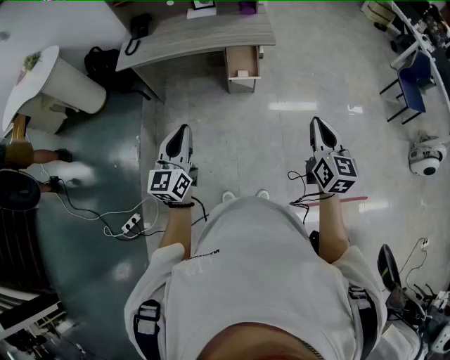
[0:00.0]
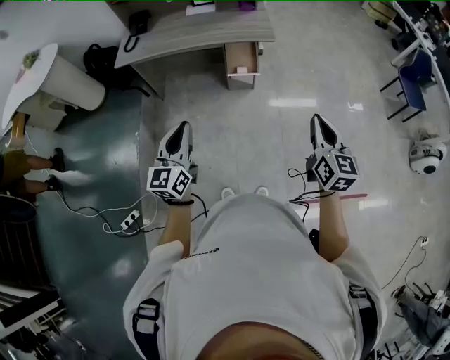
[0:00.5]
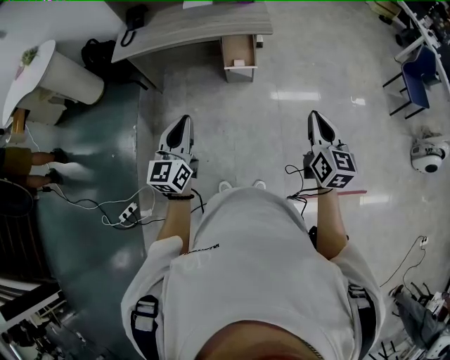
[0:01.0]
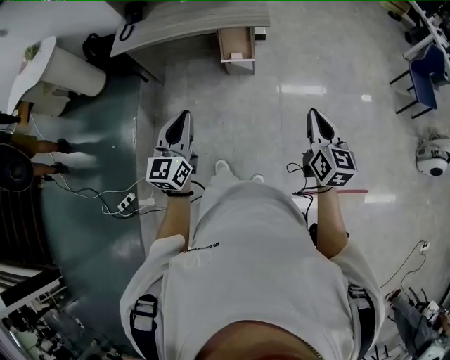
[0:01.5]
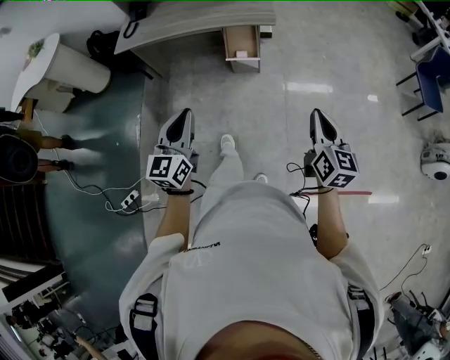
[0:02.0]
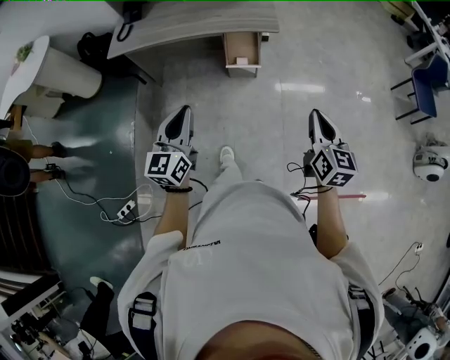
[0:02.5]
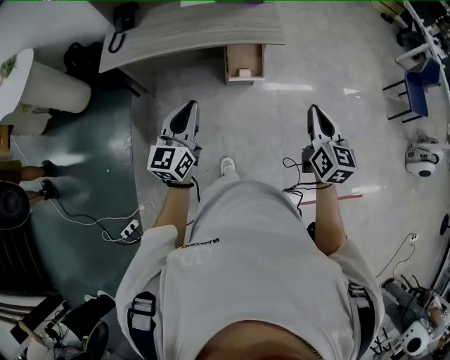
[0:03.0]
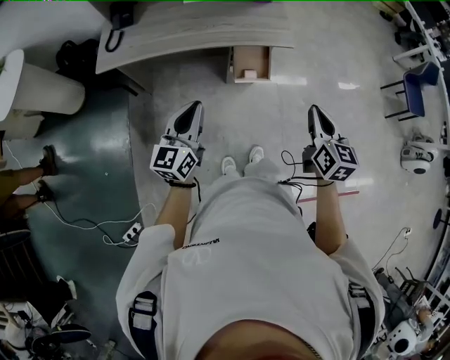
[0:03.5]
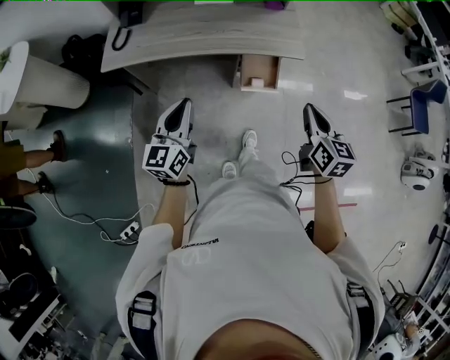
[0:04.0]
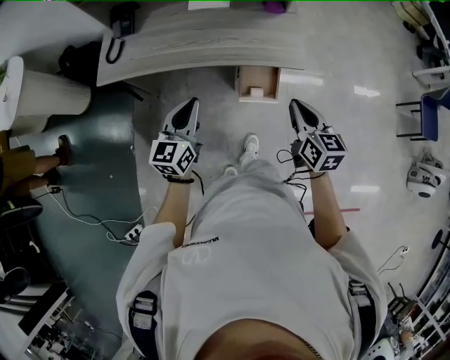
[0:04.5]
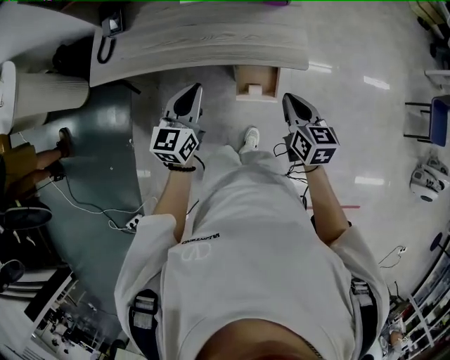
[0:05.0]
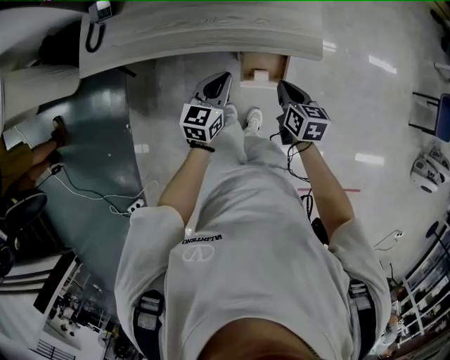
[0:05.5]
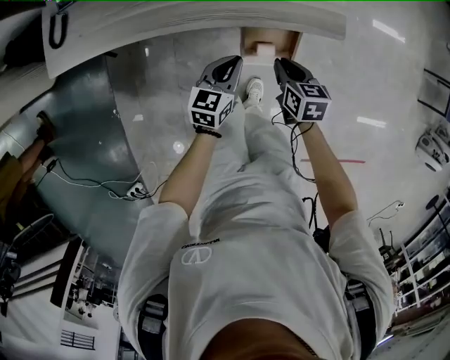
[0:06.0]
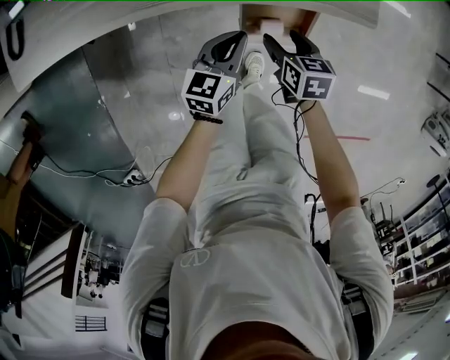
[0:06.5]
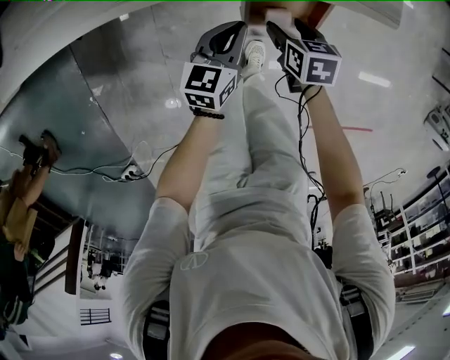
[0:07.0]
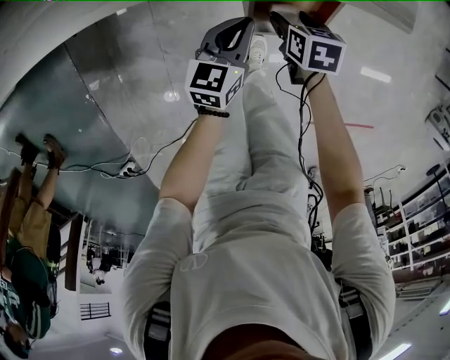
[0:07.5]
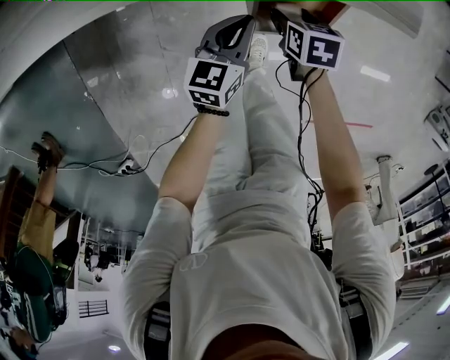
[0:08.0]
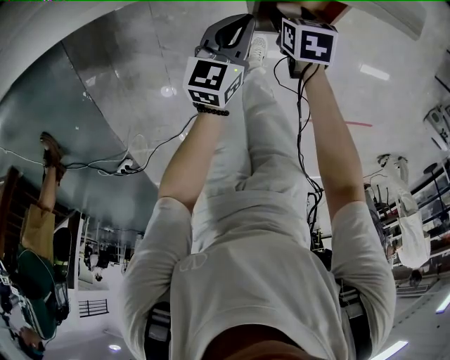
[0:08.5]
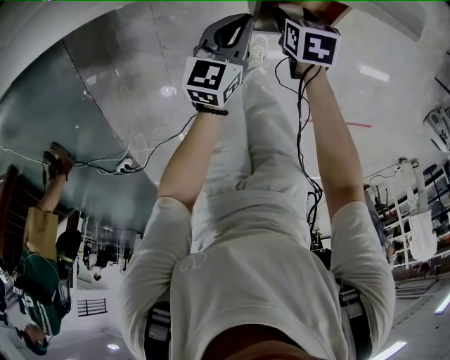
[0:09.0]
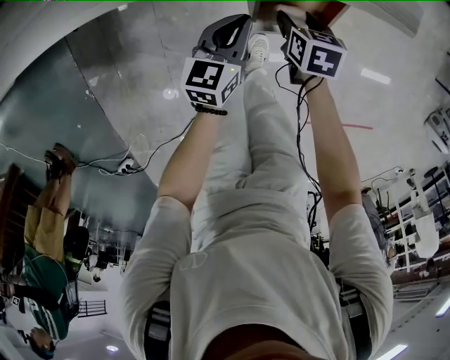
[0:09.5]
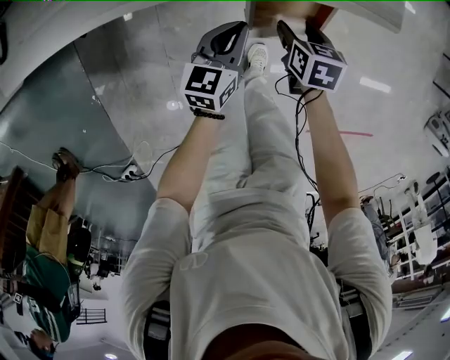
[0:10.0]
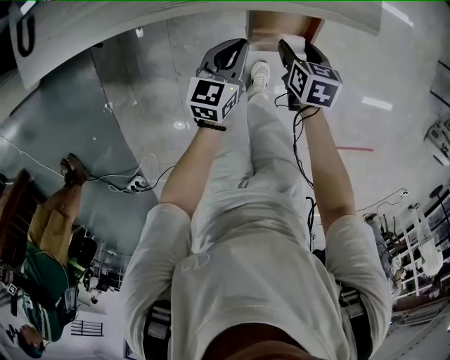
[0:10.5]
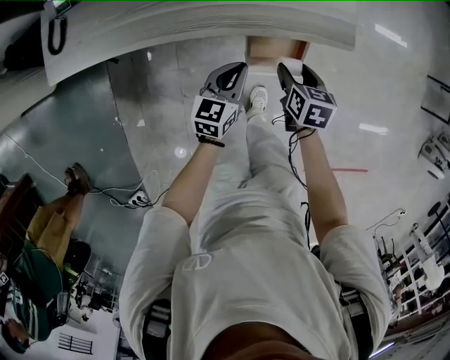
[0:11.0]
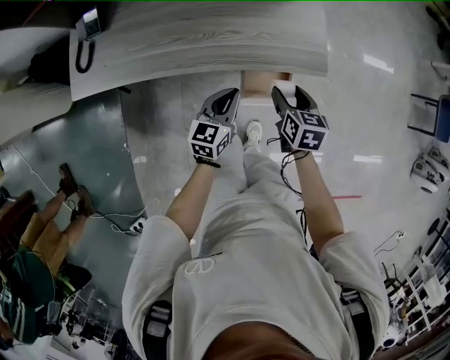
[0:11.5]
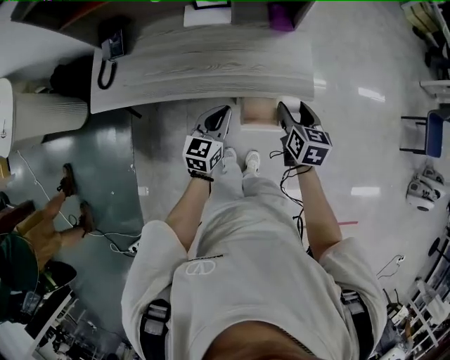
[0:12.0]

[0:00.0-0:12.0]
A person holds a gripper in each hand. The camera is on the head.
0:00.0 to 0:02.0: The right gripper shifts about 10 cm to the right and downward; the left gripper goes about 10 cm to the right.
0:02.0 to 0:04.0: Both grippers travel together forward and to the left, about 35 cm.
0:04.0 to 0:06.0: The left gripper heads downward, forward and to the right, covering about 40 cm, and rotates some 30 degrees; the right gripper moves downward and forward, some 40 cm, and changes its angle by roughly 30 degrees.
0:06.0 to 0:08.0: The two grippers go roughly 20 cm downward. The right gripper turns by approximately 20 degrees, and opens up.
0:08.0 to 0:10.0: The right gripper heads upward, covering some 5 cm.
0:10.0 to 0:12.0: Both grippers travel together upward, roughly 35 cm. The right gripper turns by roughly 30 degrees.

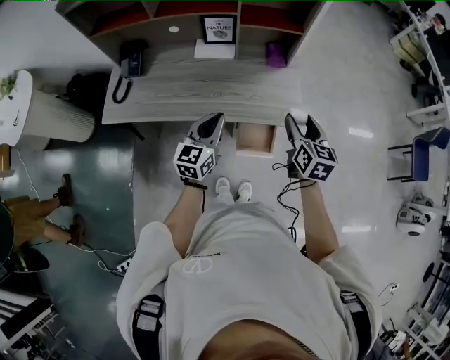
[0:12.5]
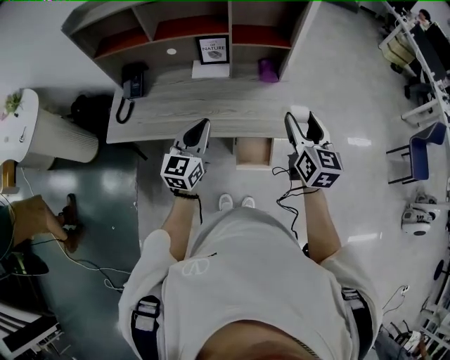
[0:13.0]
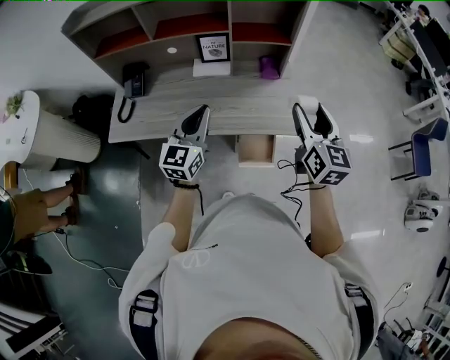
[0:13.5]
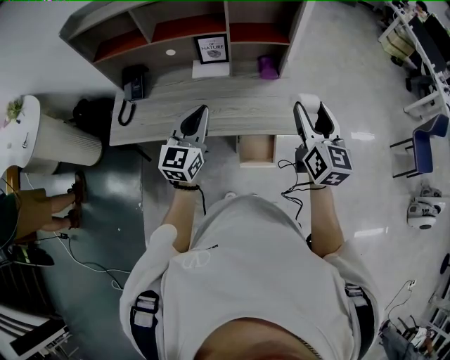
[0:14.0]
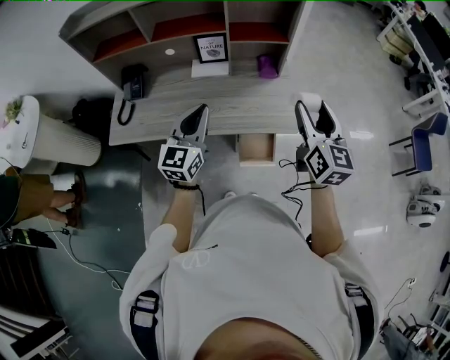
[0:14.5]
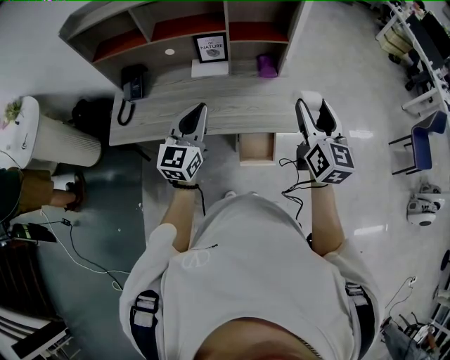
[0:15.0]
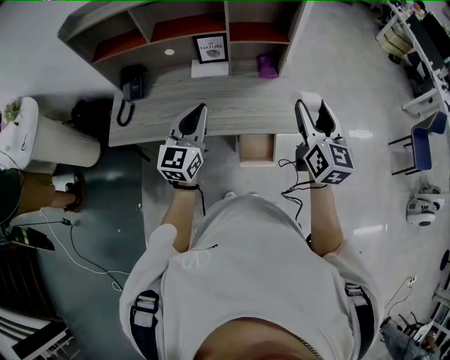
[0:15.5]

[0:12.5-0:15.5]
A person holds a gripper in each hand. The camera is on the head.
0:12.5 to 0:14.0: The grippers both shift upward by about 15 cm. The right gripper swivels approximately 20 degrees.
0:14.0 to 0:15.5: The two grippers keep their place.

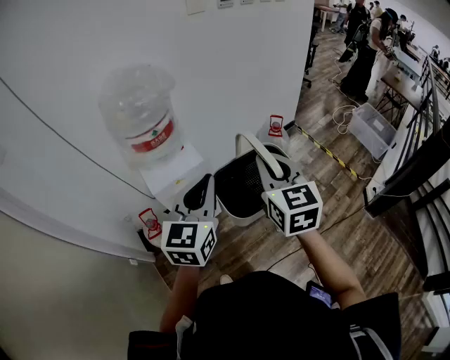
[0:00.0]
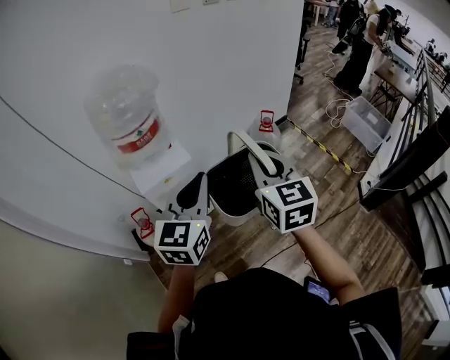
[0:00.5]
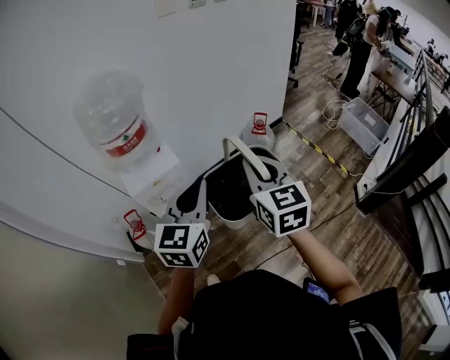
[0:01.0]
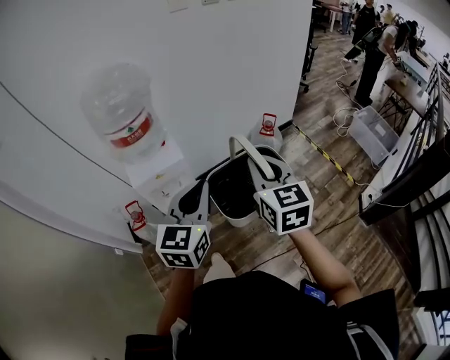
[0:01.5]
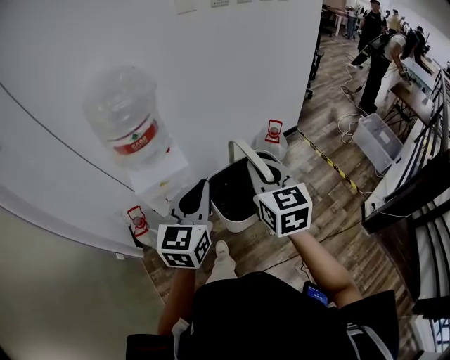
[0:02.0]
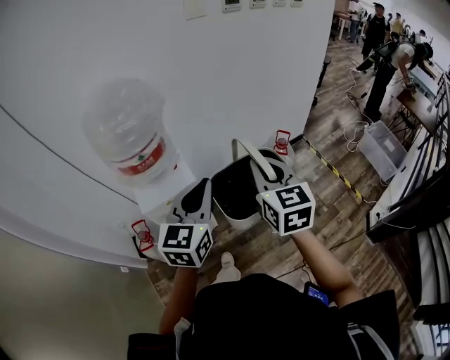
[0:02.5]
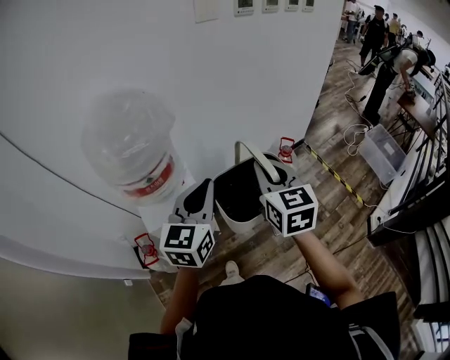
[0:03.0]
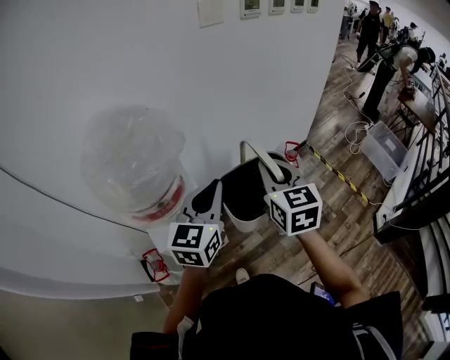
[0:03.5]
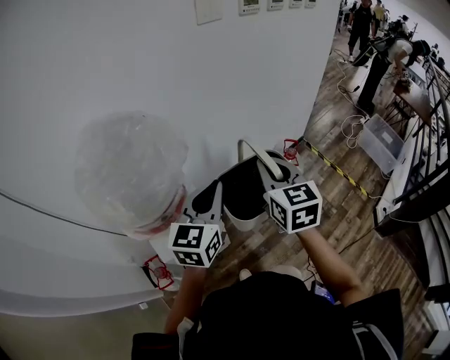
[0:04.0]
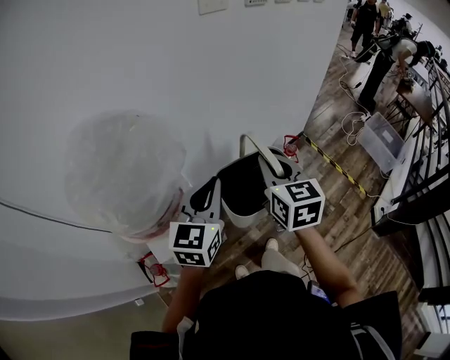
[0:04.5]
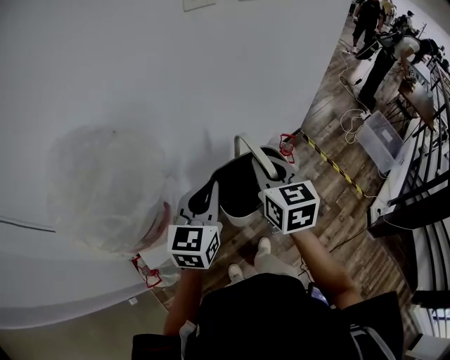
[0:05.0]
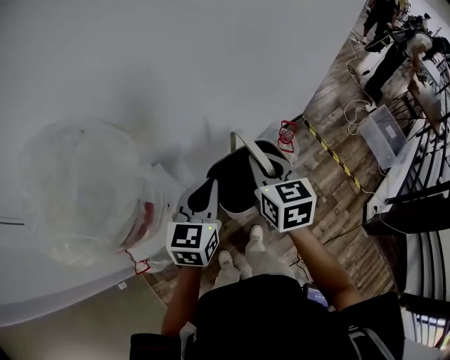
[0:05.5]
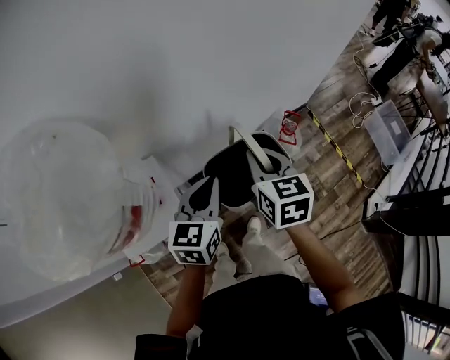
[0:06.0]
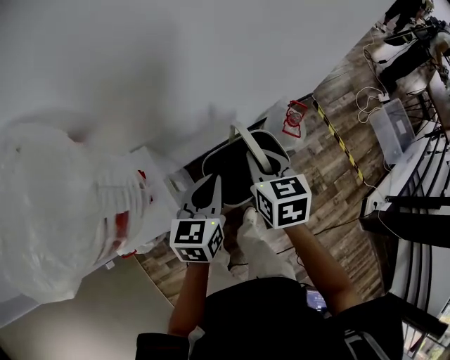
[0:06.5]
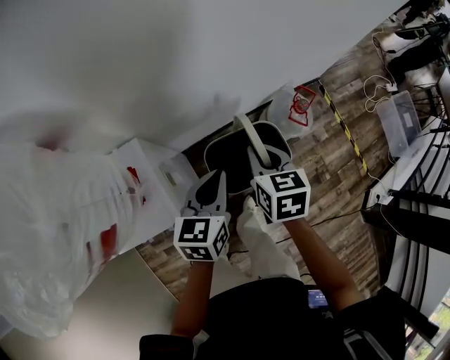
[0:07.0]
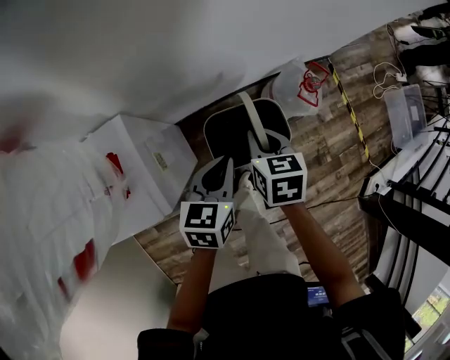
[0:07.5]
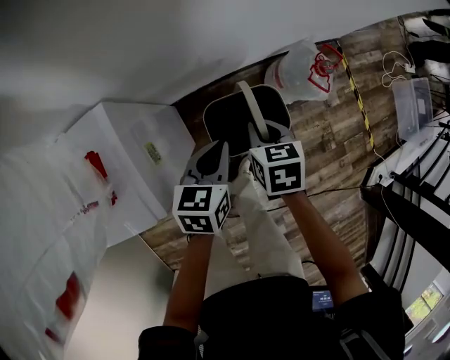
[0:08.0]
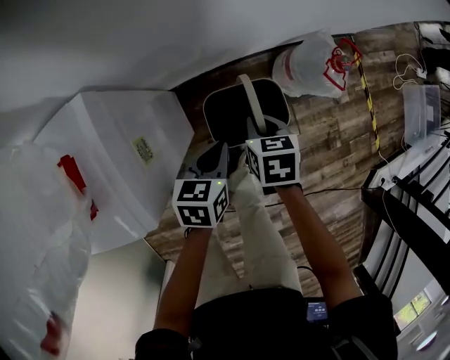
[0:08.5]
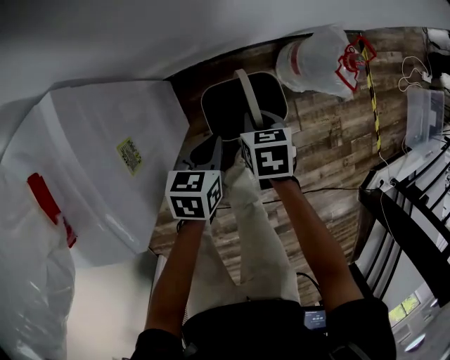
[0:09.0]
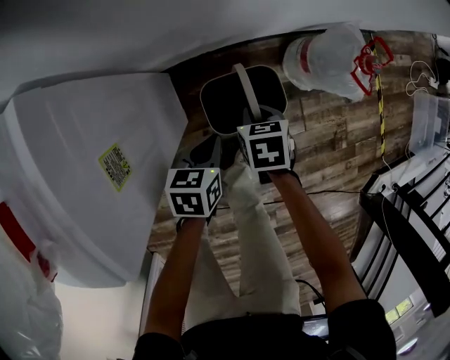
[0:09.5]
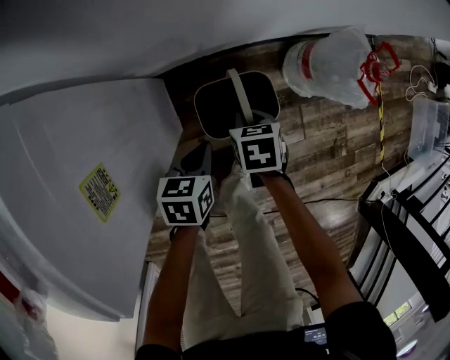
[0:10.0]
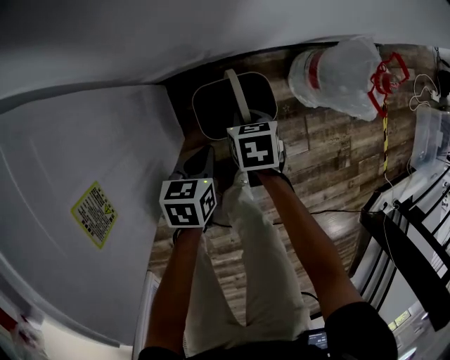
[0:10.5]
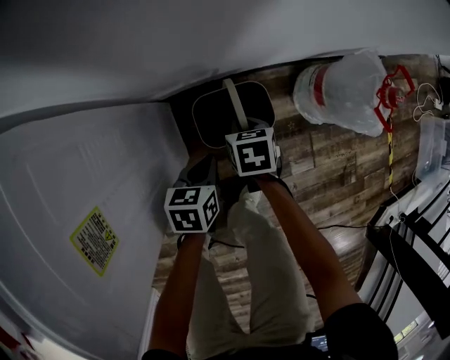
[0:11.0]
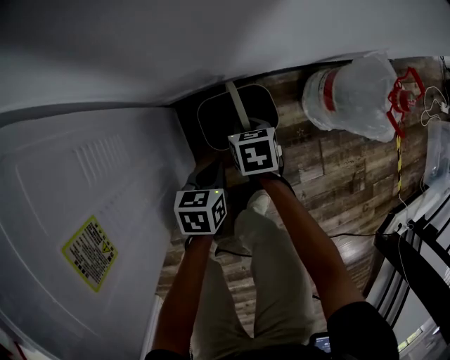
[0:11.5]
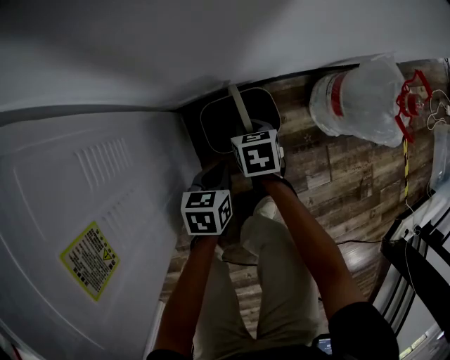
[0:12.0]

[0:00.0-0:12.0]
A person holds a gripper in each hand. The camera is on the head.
0:00.0 to 0:02.0: Both grippers travel together to the right, some 5 cm.
0:02.0 to 0:04.0: The two grippers go about 30 cm forward and to the left.
0:04.0 to 0:06.0: The two grippers go about 15 cm downward and forward.
0:06.0 to 0:08.0: The two grippers go roughly 30 cm downward. The right gripper swivels some 30 degrees, while the left gripper rotates roughly 20 degrees.
0:08.0 to 0:10.0: The two grippers go about 25 cm downward.
0:10.0 to 0:12.0: The right gripper heads downward, forward and to the left, covering roughly 15 cm; the left gripper travels downward by some 15 cm.
